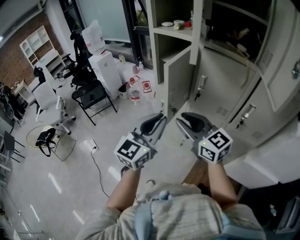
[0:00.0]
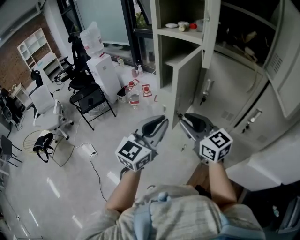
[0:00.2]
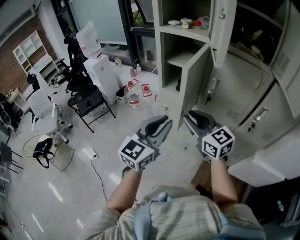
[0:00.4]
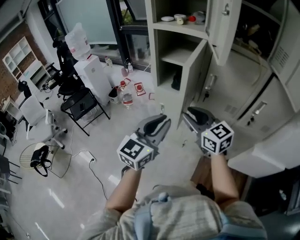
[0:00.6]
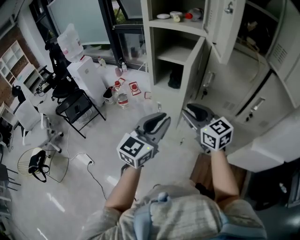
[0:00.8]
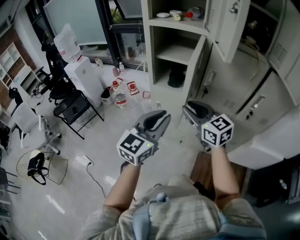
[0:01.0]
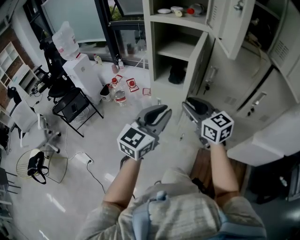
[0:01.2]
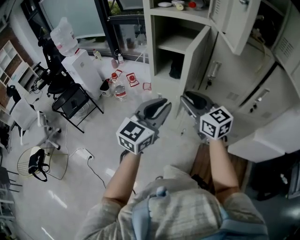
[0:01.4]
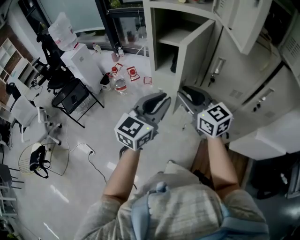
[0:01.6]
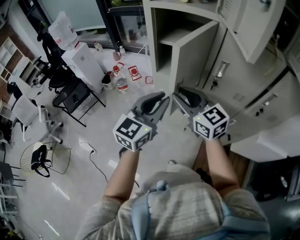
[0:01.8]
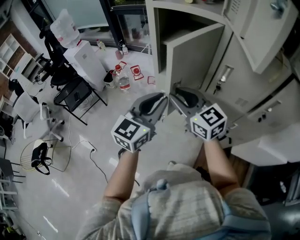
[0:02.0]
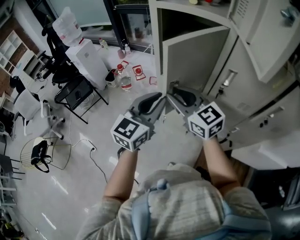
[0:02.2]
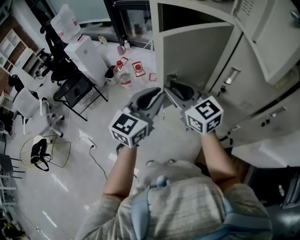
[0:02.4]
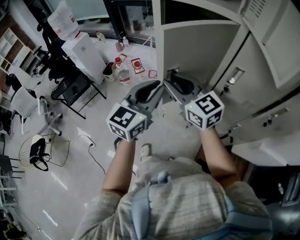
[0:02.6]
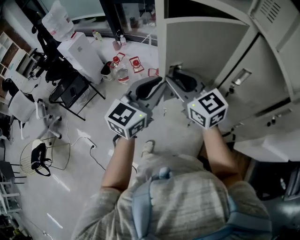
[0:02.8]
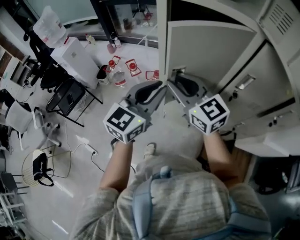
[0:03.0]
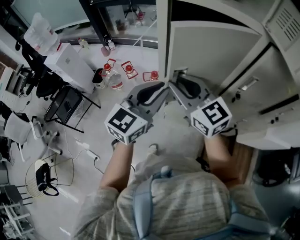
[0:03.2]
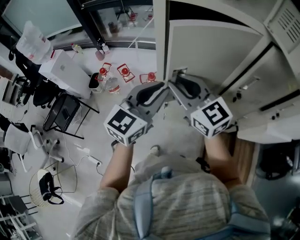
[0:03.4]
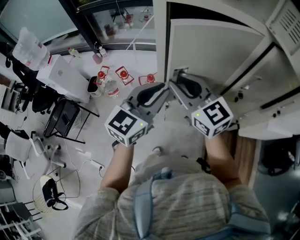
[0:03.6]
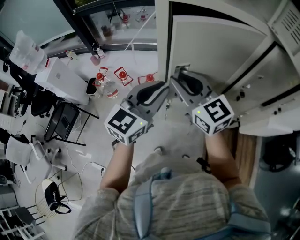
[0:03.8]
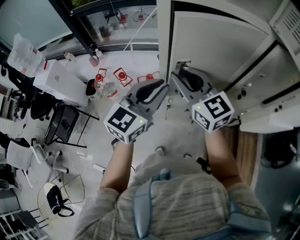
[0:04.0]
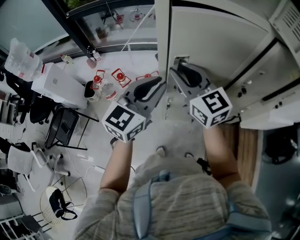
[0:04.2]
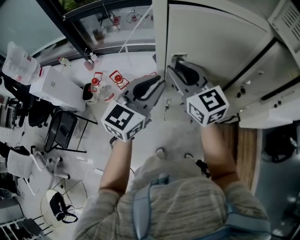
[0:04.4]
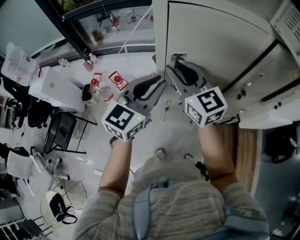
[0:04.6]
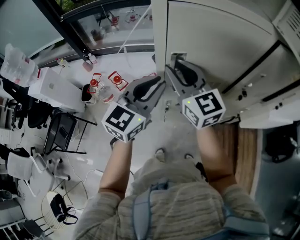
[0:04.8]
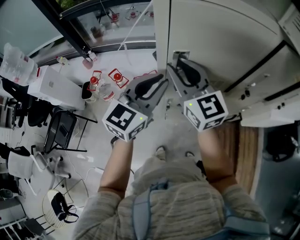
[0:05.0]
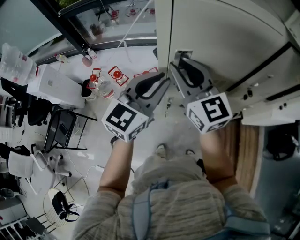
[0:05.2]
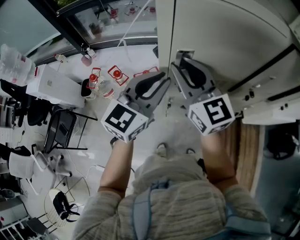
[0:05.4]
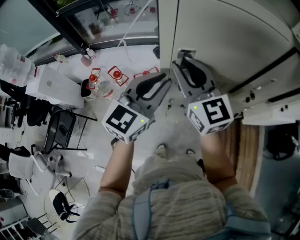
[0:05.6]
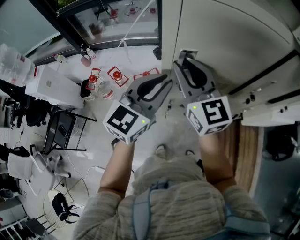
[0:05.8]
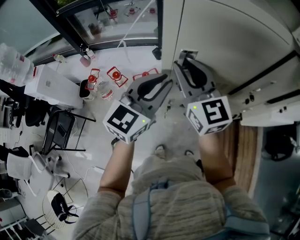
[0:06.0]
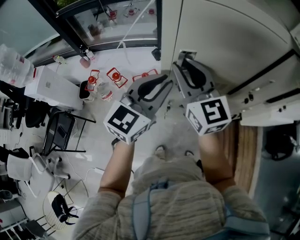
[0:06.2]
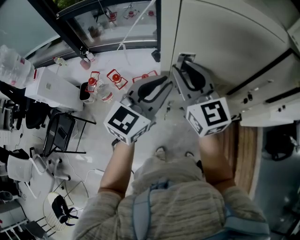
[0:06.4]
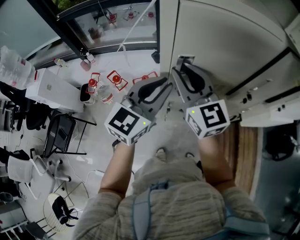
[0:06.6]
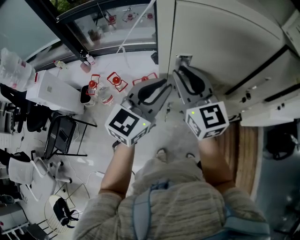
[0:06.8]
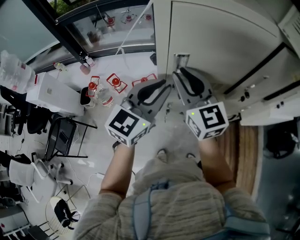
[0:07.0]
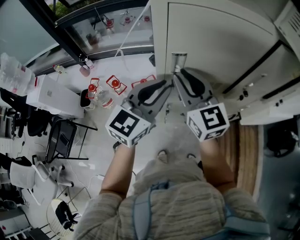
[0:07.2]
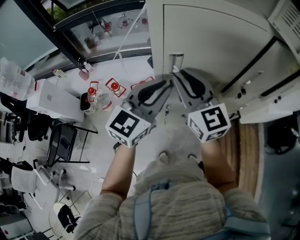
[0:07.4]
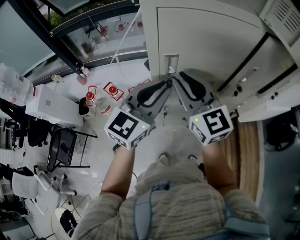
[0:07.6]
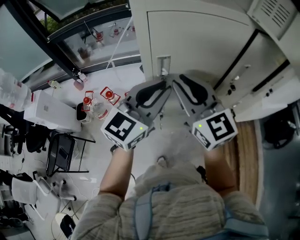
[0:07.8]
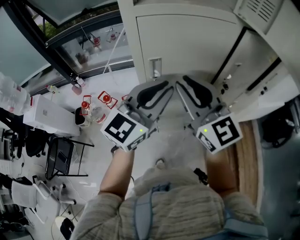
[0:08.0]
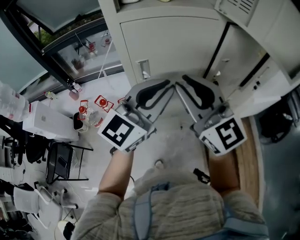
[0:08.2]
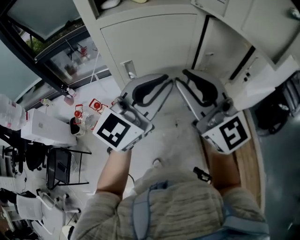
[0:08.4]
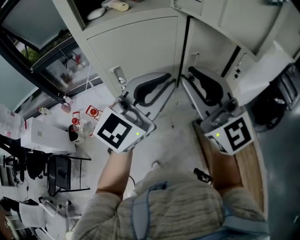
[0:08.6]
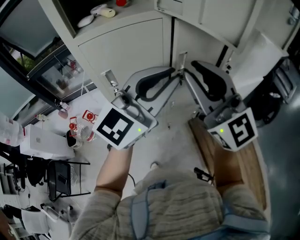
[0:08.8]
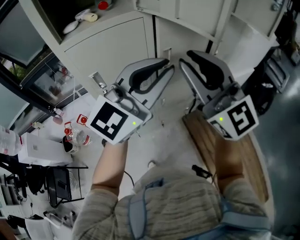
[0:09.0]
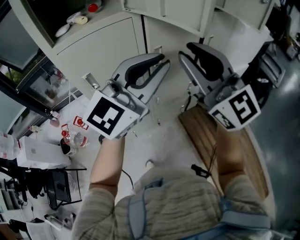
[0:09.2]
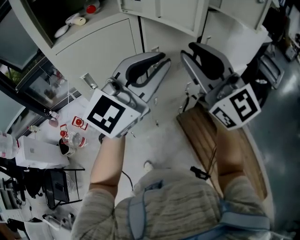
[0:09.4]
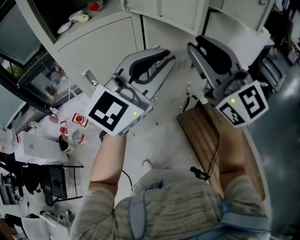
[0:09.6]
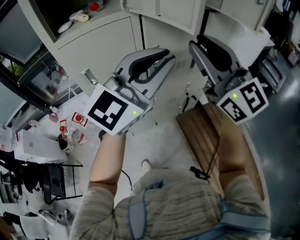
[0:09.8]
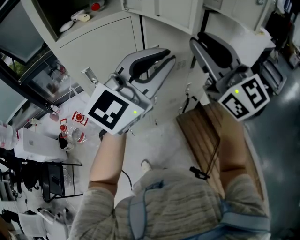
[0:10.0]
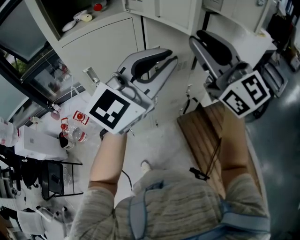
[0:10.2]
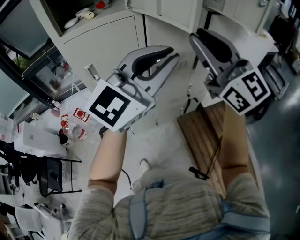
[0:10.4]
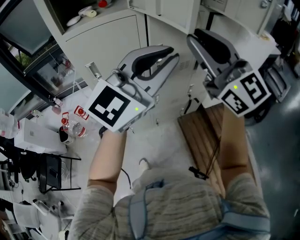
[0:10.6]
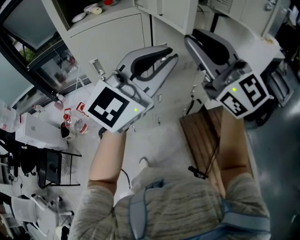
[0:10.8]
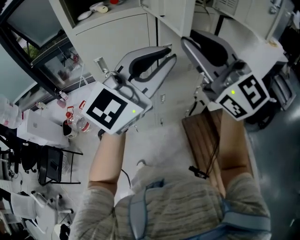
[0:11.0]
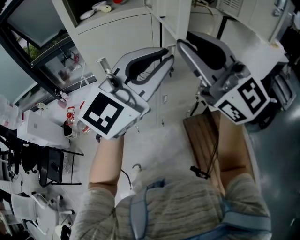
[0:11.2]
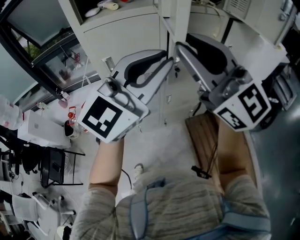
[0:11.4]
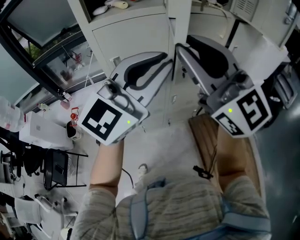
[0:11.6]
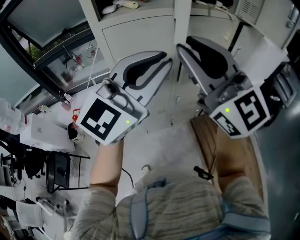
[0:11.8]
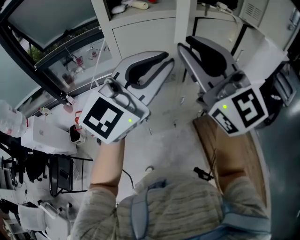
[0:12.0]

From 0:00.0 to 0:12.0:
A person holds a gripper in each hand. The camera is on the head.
From 0:00.0 to 0:01.6: The grippers both shift forward, to the left and downward by about 15 cm.
From 0:01.6 to 0:03.0: Both grippers travel together forward and to the left, some 15 cm.
From 0:03.0 to 0:04.4: The grippers both shift forward by approximately 10 cm. The right gripper rotates approximately 20 degrees.
From 0:04.4 to 0:06.0: The grippers make only small movements.
From 0:06.0 to 0:07.6: The right gripper shifts by some 5 cm.
From 0:07.6 to 0:09.0: Both grippers travel together to the right and upward, some 30 cm. The right gripper changes its angle by some 20 degrees. The left gripper changes its angle by about 30 degrees.
From 0:09.0 to 0:10.4: The grippers both shift to the right by some 5 cm.
From 0:10.4 to 0:12.0: The grippers both shift to the left by approximately 20 cm.

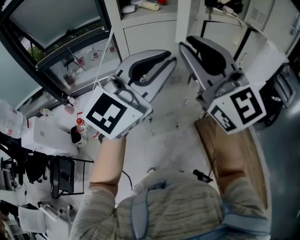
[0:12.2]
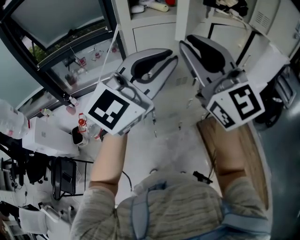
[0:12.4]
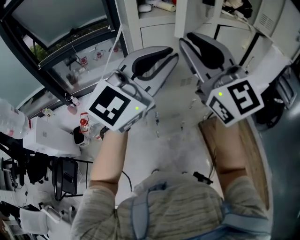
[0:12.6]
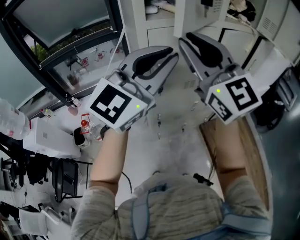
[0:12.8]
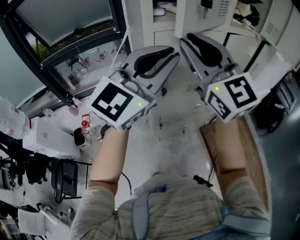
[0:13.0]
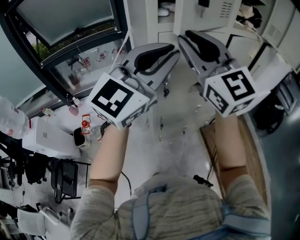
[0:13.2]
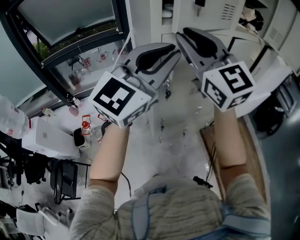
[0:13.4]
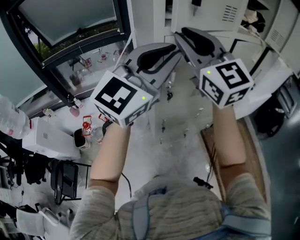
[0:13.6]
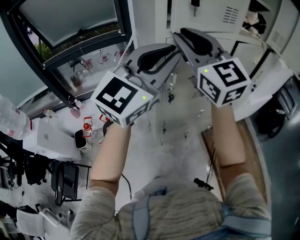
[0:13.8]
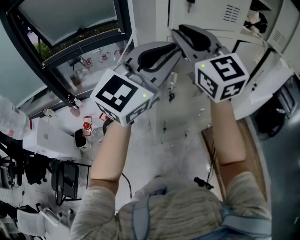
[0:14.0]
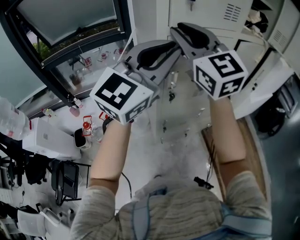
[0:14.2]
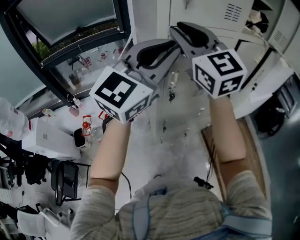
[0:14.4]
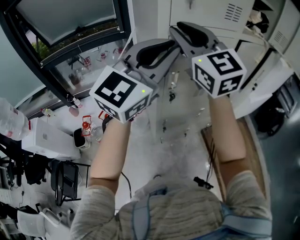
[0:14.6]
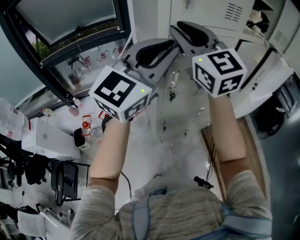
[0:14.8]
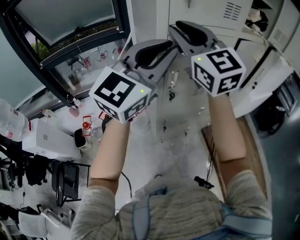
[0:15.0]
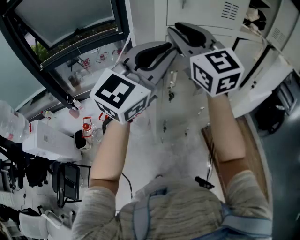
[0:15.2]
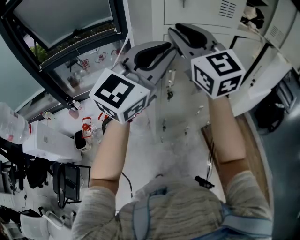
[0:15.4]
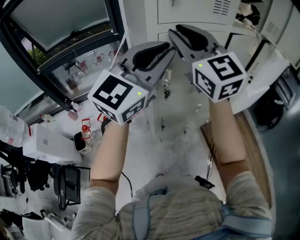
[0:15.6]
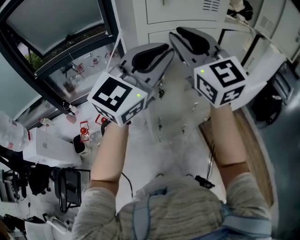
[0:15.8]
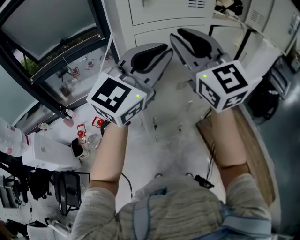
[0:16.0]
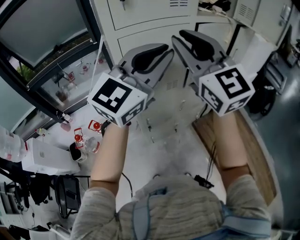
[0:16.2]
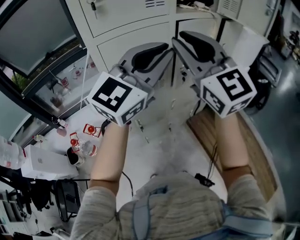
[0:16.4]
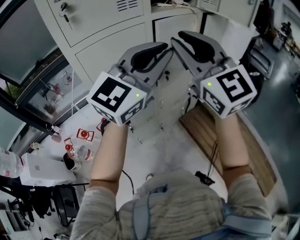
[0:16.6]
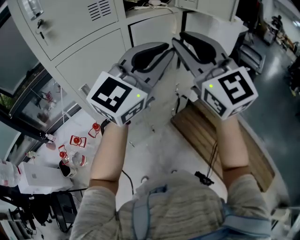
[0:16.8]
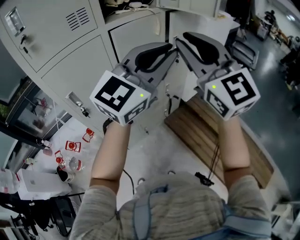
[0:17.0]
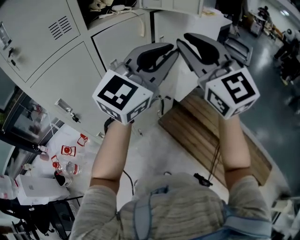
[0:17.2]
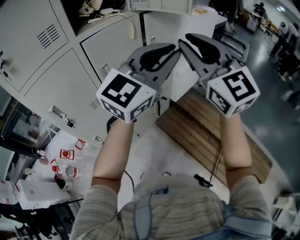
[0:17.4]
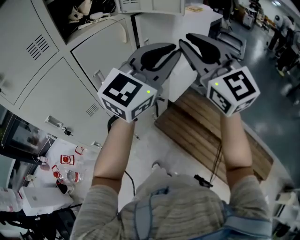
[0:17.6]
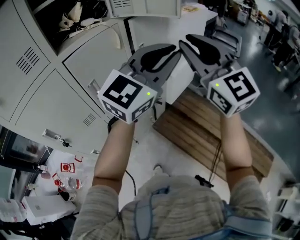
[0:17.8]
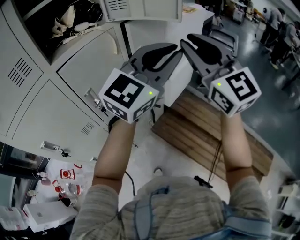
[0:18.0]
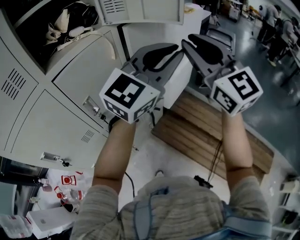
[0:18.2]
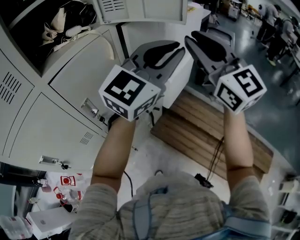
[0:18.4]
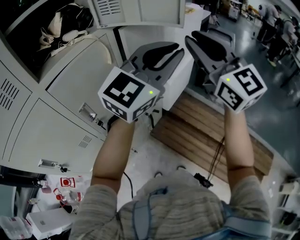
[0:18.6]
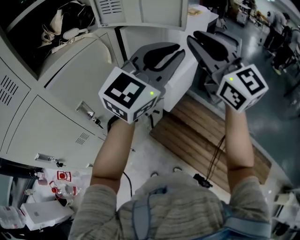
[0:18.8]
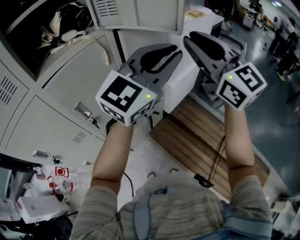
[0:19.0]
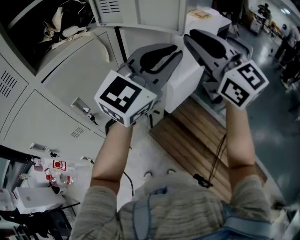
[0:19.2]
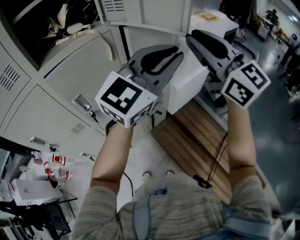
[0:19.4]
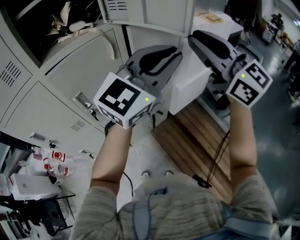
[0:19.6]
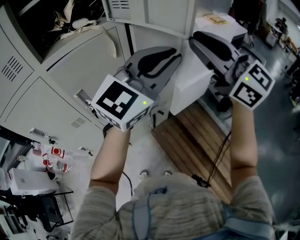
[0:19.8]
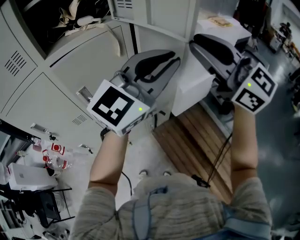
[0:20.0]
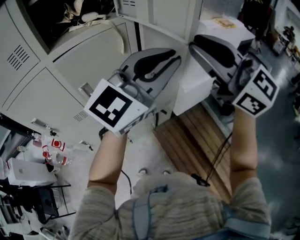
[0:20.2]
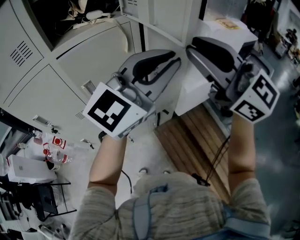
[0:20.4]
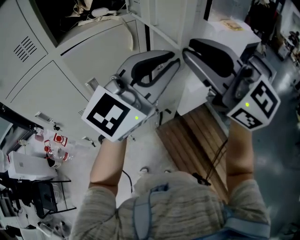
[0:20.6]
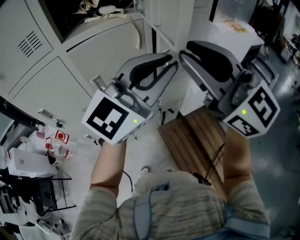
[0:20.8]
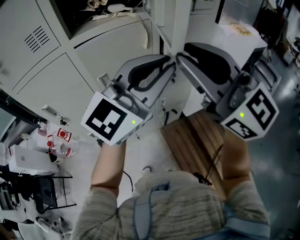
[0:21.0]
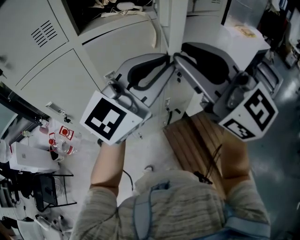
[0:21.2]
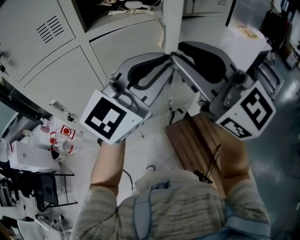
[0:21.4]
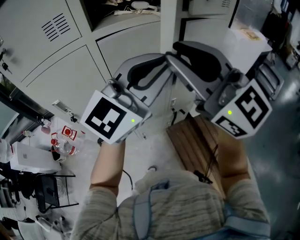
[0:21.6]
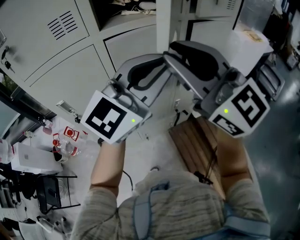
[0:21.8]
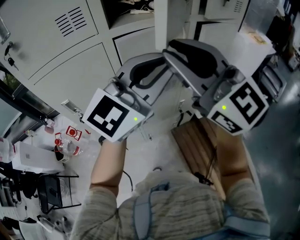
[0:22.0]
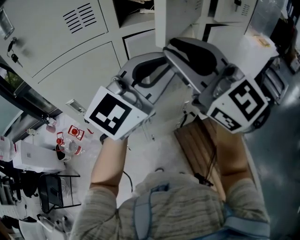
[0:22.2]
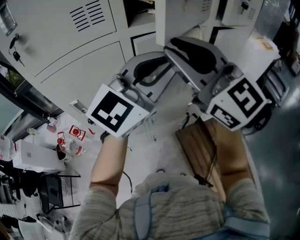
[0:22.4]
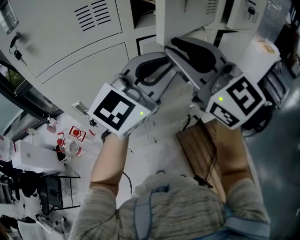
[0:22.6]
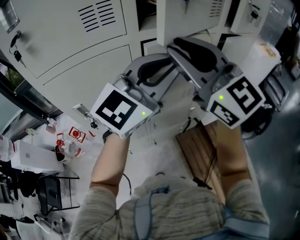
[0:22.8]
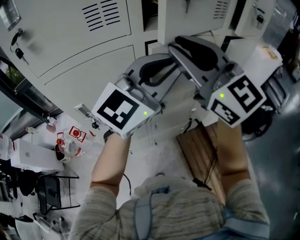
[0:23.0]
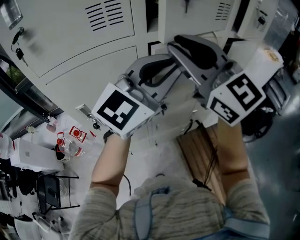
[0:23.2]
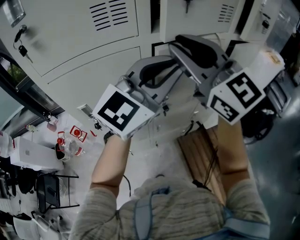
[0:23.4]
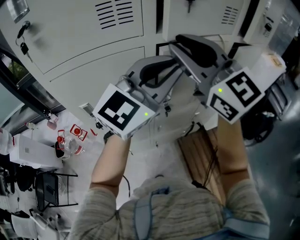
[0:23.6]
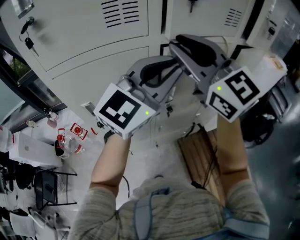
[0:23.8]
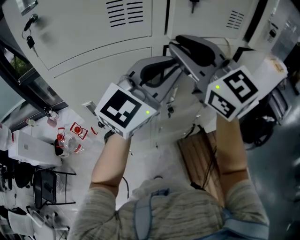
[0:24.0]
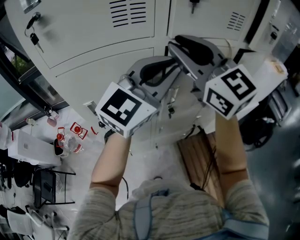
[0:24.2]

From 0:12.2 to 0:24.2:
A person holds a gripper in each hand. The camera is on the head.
From 0:12.2 to 0:13.8: Both grippers move to the left and forward, roughly 15 cm.
From 0:13.8 to 0:15.2: The grippers stay close to where they were, moving slightly.
From 0:15.2 to 0:16.6: Both grippers travel together to the right, roughly 25 cm.
From 0:16.6 to 0:18.2: The grippers both shift to the right and forward by roughly 35 cm. The left gripper swivels about 20 degrees.
From 0:18.2 to 0:19.8: The right gripper moves some 10 cm, and turns by roughly 30 degrees. The left gripper changes place by about 5 cm.
From 0:19.8 to 0:21.2: The left gripper moves to the left, approximately 10 cm. The right gripper travels to the left and backward by approximately 15 cm.
From 0:21.2 to 0:22.6: Both grippers travel together to the left, approximately 15 cm.
From 0:22.6 to 0:24.2: The right gripper travels to the left and forward by some 10 cm. Meanwhile the left gripper goes roughly 5 cm to the left.
